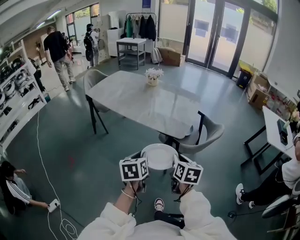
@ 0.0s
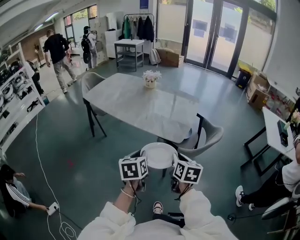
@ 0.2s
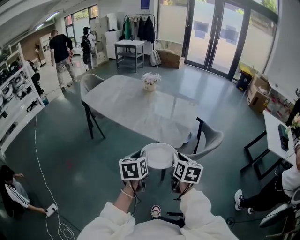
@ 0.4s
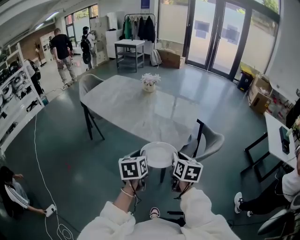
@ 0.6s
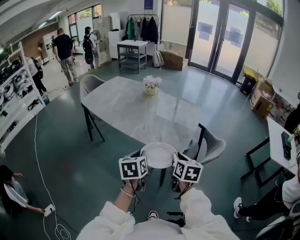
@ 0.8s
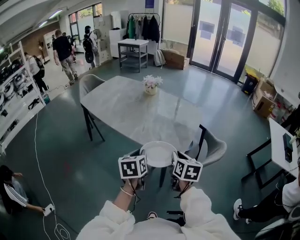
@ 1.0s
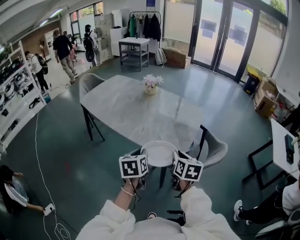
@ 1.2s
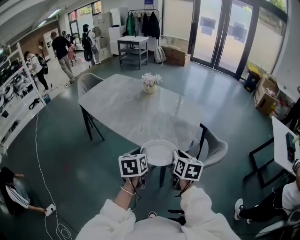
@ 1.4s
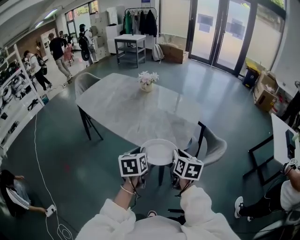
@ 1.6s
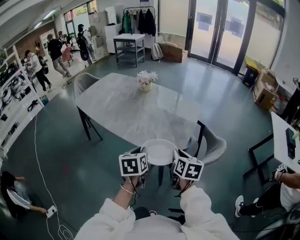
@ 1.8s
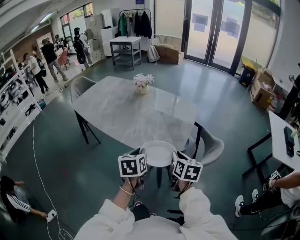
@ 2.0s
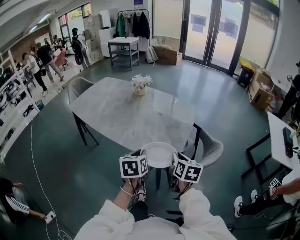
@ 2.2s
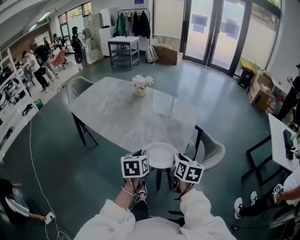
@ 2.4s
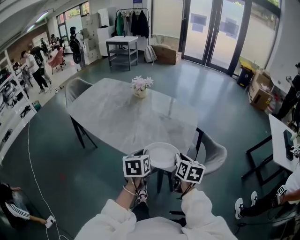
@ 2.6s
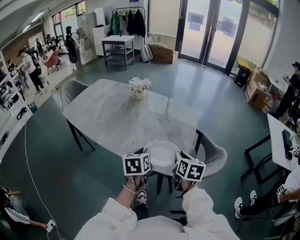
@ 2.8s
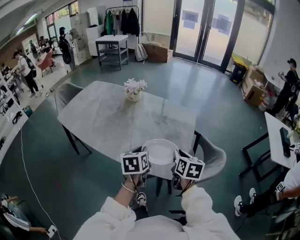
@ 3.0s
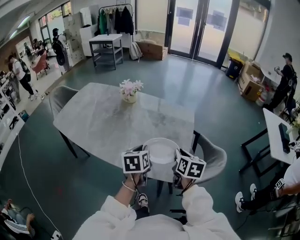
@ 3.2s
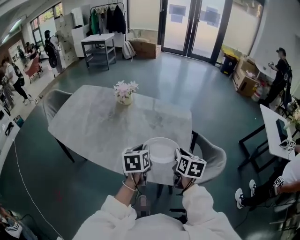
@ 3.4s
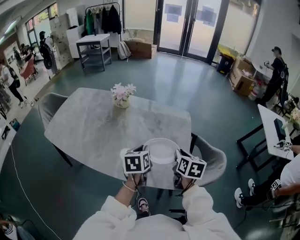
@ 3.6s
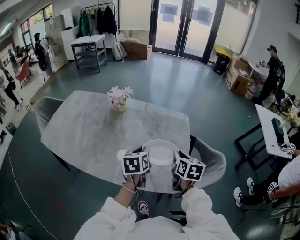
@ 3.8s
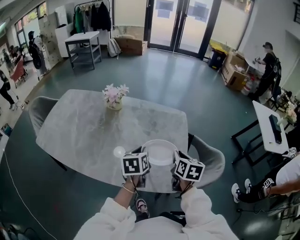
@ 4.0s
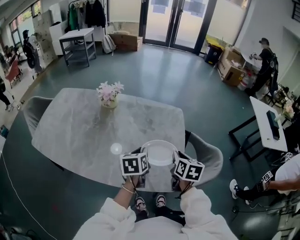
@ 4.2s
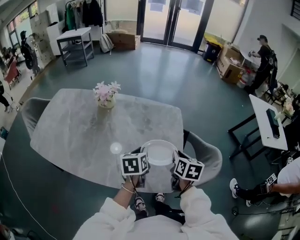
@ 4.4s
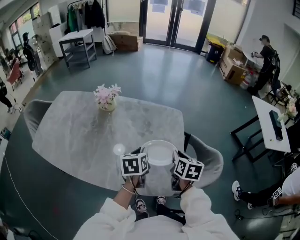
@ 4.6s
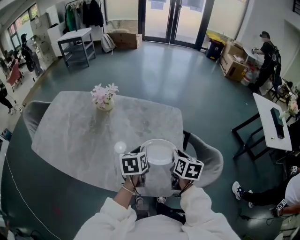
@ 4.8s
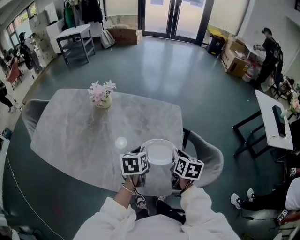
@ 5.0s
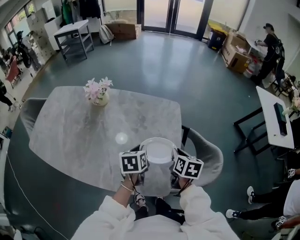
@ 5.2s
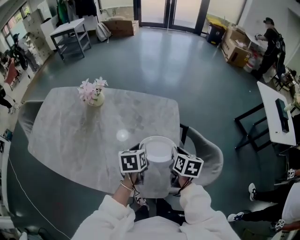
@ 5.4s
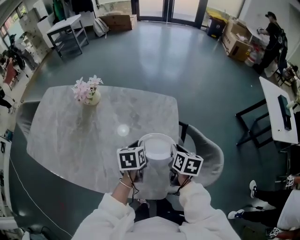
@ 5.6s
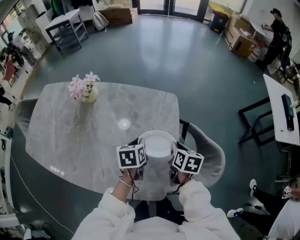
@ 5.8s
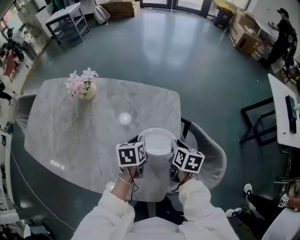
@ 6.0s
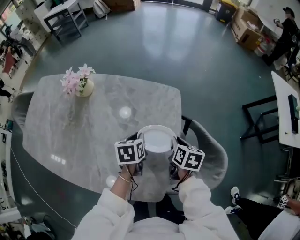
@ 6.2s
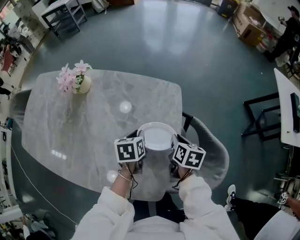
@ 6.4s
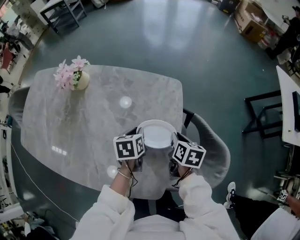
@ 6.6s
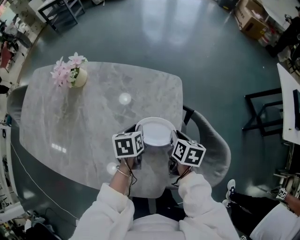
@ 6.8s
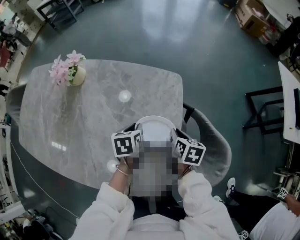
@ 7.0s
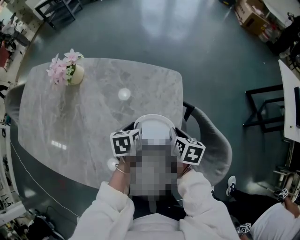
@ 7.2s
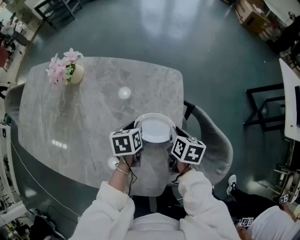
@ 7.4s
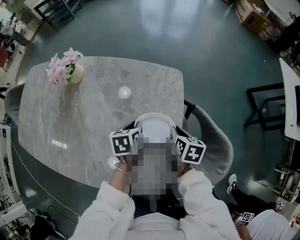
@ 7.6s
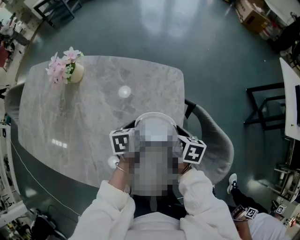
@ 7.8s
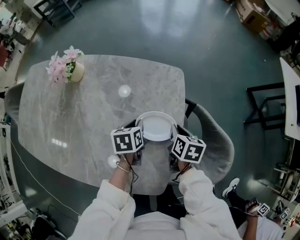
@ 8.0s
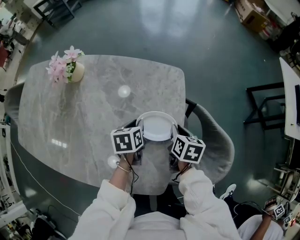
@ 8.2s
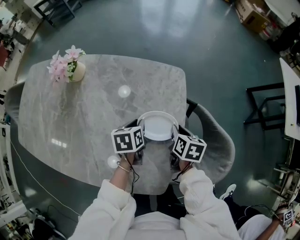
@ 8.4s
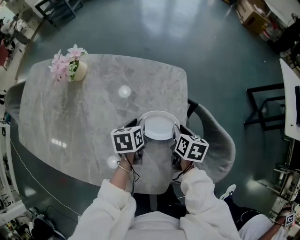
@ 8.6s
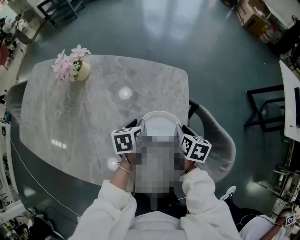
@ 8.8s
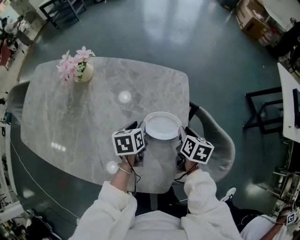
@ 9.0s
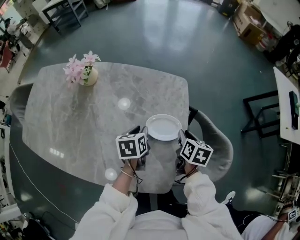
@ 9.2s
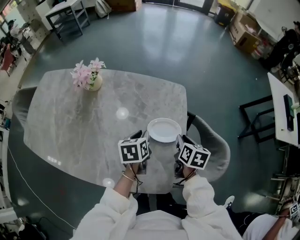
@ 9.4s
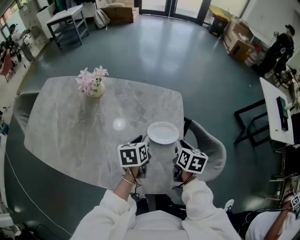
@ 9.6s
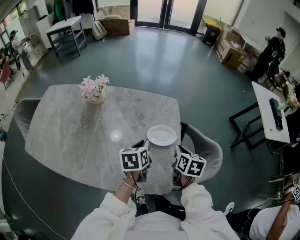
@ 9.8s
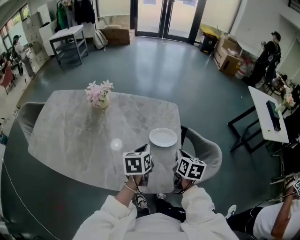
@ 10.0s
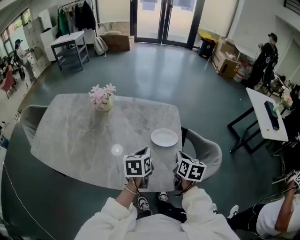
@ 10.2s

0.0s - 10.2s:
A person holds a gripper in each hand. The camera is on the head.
0.0s - 1.4s: The grippers both shift forward by approximately 20 cm.
1.4s - 3.0s: The grippers both shift forward by some 15 cm.
3.0s - 4.4s: Both grippers move forward, some 15 cm.
4.4s - 5.8s: The grippers both shift forward, downward and to the right by about 15 cm.
5.8s - 7.2s: Both grippers move downward, roughly 10 cm.
7.2s - 8.8s: There are only small adjustments of the grippers.
8.8s - 10.2s: The two grippers go approximately 20 cm upward and backward. The left gripper closes up, while the right gripper closes up.

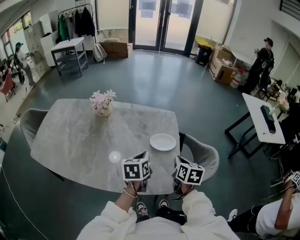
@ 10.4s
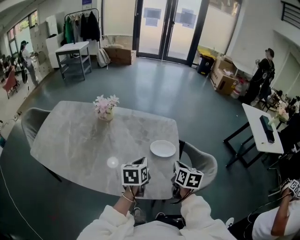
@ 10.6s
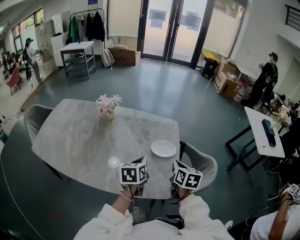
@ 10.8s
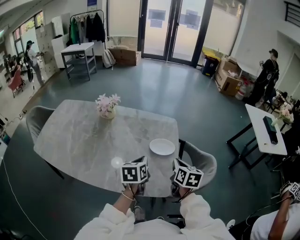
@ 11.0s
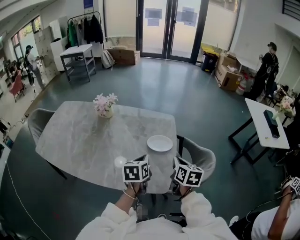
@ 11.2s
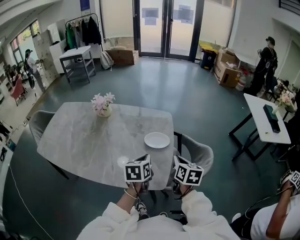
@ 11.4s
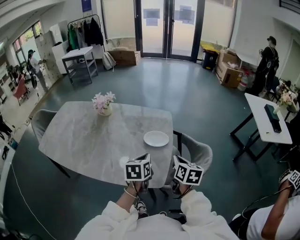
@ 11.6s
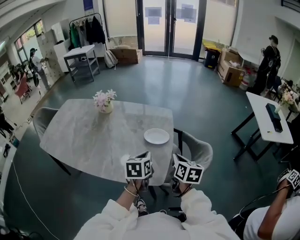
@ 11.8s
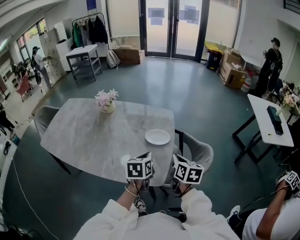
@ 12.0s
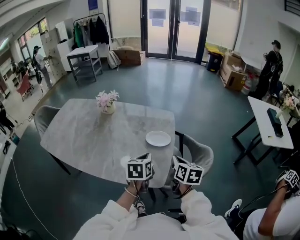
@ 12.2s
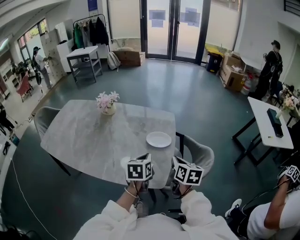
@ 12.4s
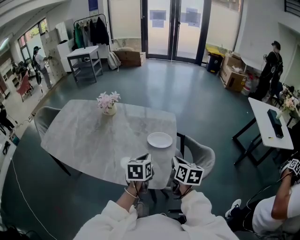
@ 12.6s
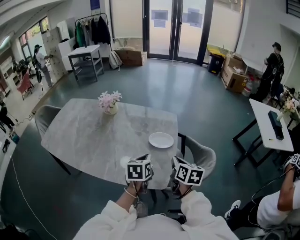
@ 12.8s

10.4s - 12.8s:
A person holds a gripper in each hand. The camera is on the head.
10.4s - 11.6s: The left gripper is displaced to the right and backward by roughly 10 cm; the right gripper is displaced to the right by about 5 cm.
11.6s - 12.8s: The grippers make only small movements.

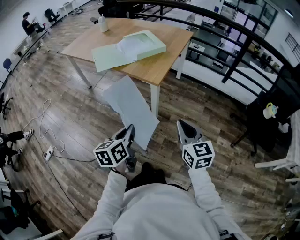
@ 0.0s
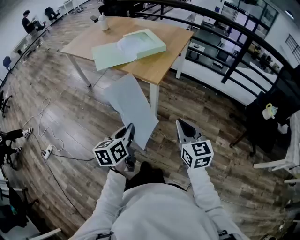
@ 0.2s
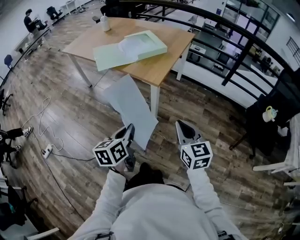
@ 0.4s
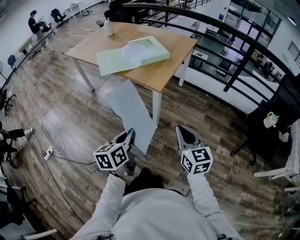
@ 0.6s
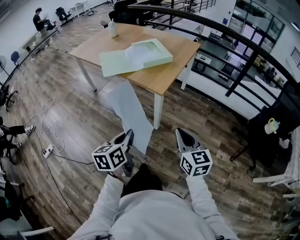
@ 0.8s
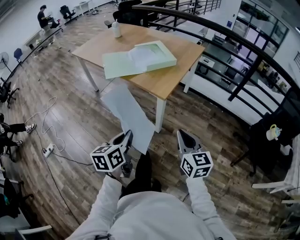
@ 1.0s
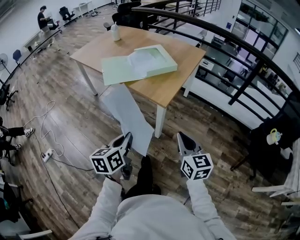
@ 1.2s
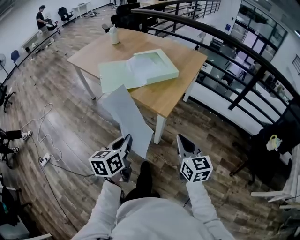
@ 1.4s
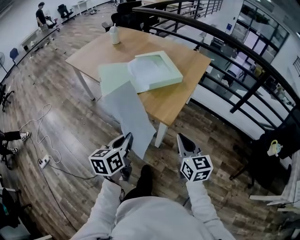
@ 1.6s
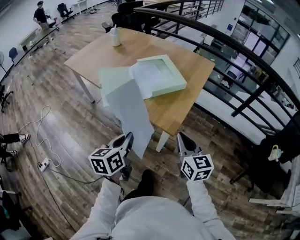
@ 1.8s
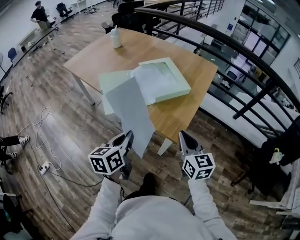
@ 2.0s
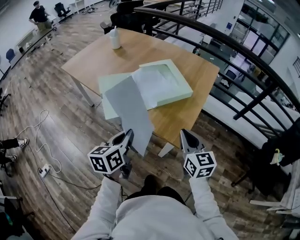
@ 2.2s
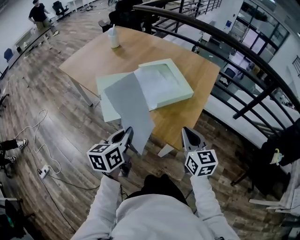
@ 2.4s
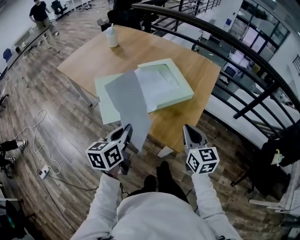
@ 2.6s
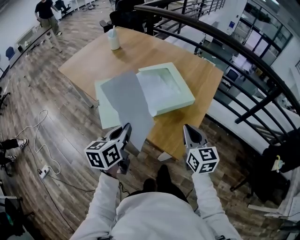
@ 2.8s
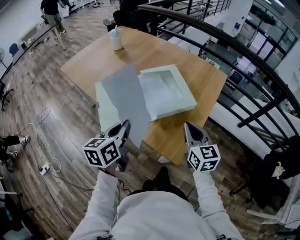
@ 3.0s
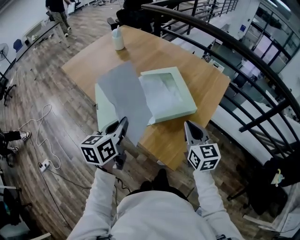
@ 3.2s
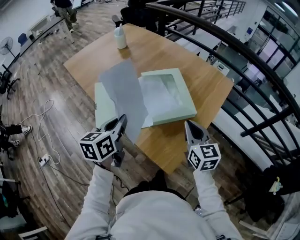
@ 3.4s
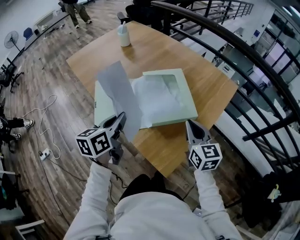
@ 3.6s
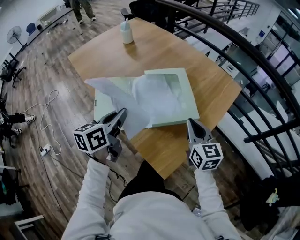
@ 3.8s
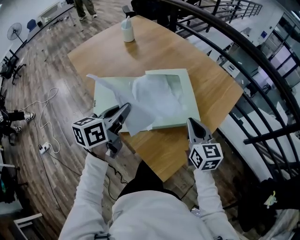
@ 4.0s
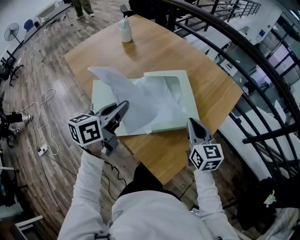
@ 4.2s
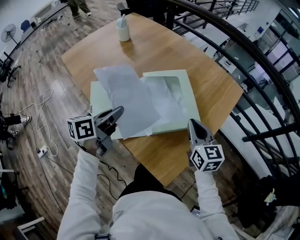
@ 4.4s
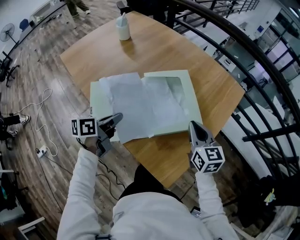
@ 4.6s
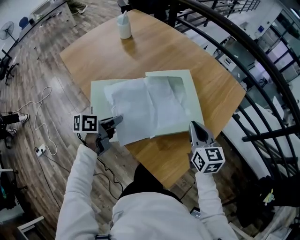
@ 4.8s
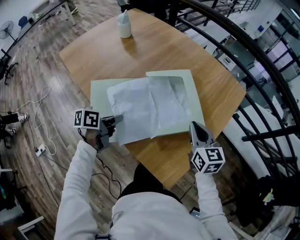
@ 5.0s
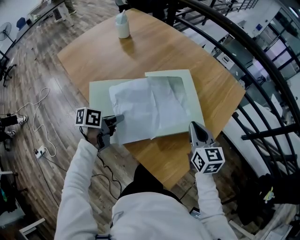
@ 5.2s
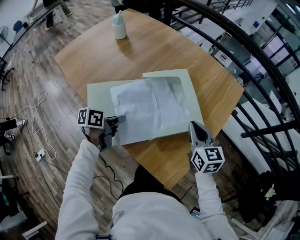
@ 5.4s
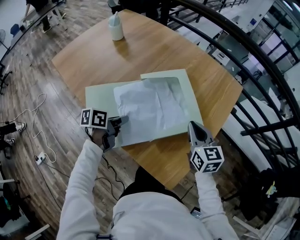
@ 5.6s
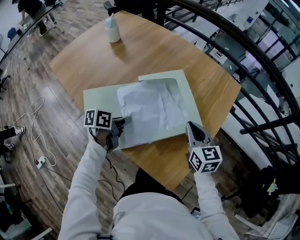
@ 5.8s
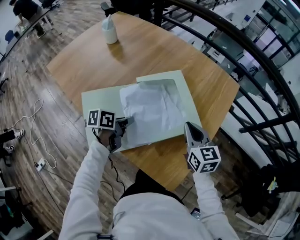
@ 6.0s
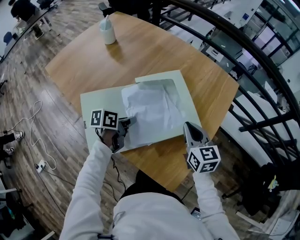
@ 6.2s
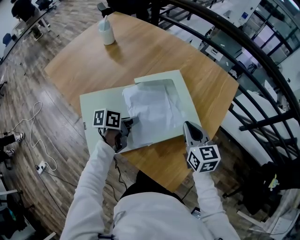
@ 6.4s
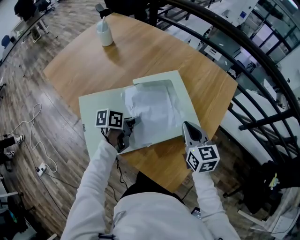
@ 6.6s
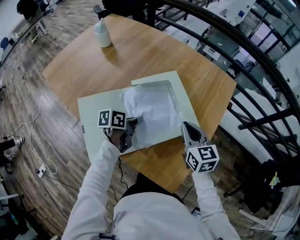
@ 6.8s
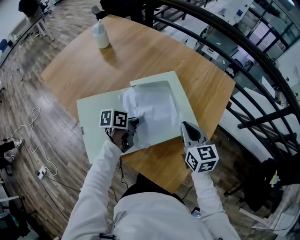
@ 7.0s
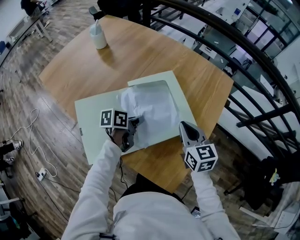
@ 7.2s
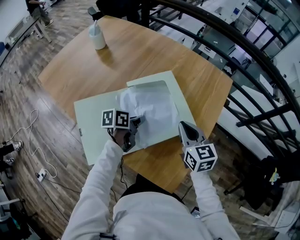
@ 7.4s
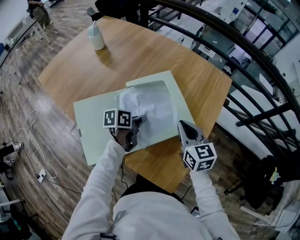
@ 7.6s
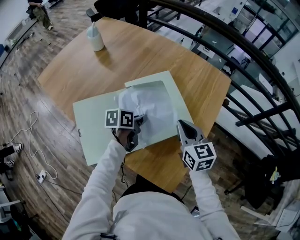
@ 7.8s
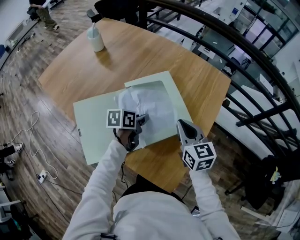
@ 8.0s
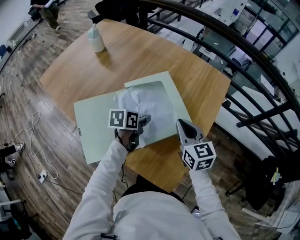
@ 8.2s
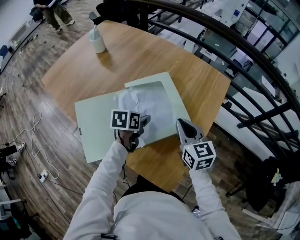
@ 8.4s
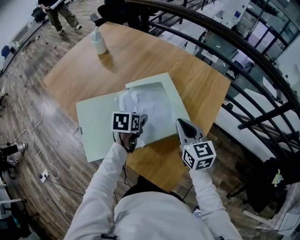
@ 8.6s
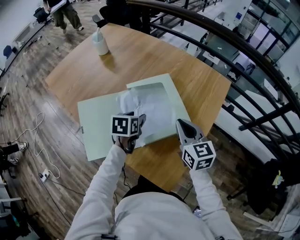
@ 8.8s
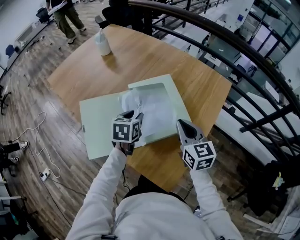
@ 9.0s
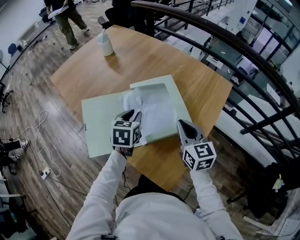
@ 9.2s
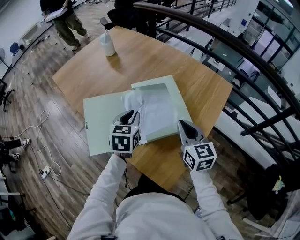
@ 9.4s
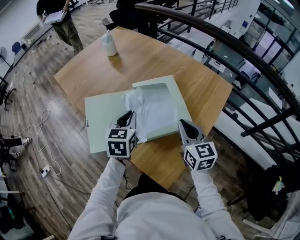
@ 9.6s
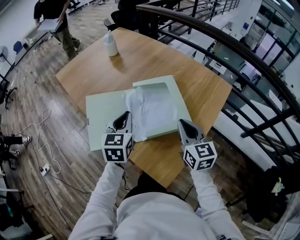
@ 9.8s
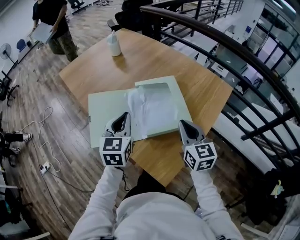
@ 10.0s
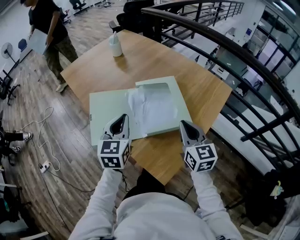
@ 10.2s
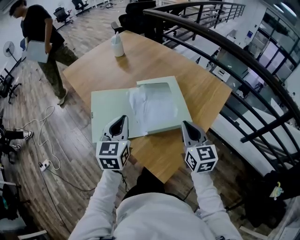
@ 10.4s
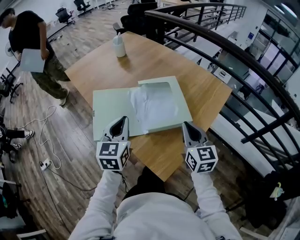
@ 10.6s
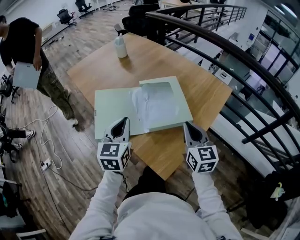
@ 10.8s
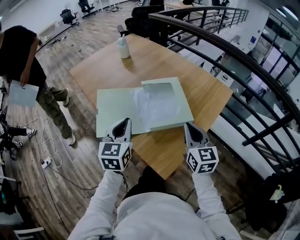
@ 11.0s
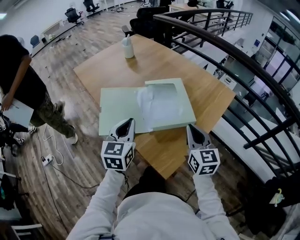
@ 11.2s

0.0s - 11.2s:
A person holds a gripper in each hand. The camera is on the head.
0.0s - 1.6s: The grippers both shift forward by roughly 20 cm.
1.6s - 3.2s: Both grippers travel together forward, about 30 cm.
3.2s - 4.8s: The right gripper is displaced forward by roughly 10 cm; the left gripper heads downward and forward, covering roughly 15 cm, and turns by roughly 30 degrees.
4.8s - 6.4s: The left gripper is displaced forward and to the right by about 10 cm.
6.4s - 8.0s: The left gripper goes approximately 5 cm to the right.
8.0s - 9.6s: The left gripper goes about 15 cm upward, backward and to the left, turns by some 50 degrees, and opens, then closes once more.
9.6s - 11.2s: The right gripper is displaced backward by some 10 cm. The left gripper moves backward and upward, some 15 cm.
